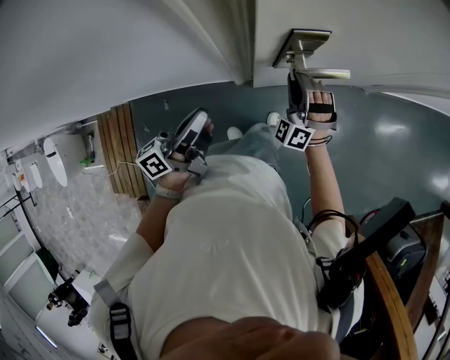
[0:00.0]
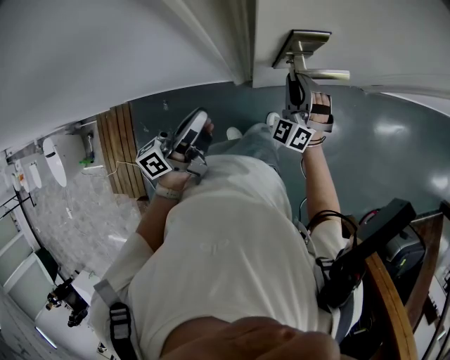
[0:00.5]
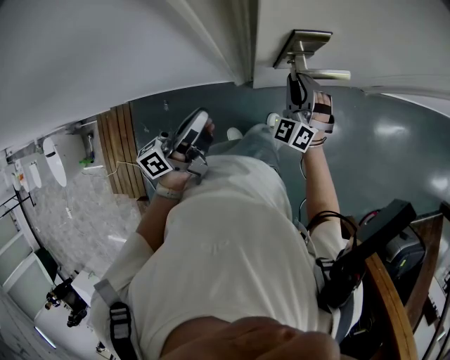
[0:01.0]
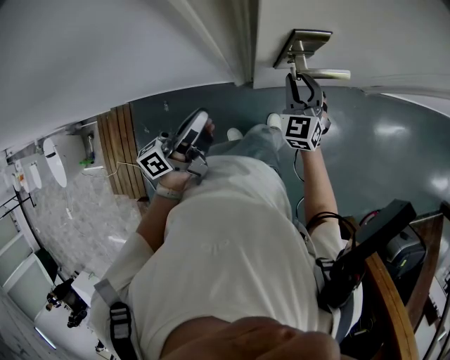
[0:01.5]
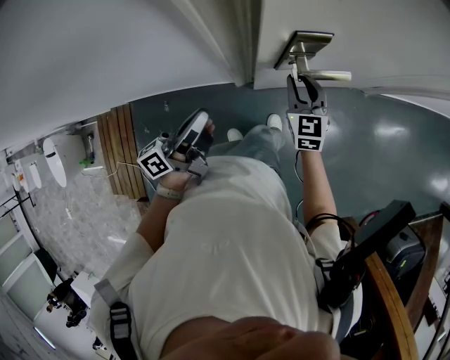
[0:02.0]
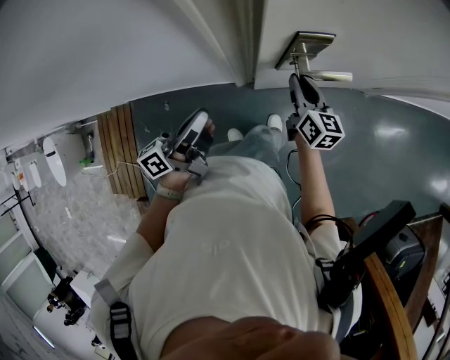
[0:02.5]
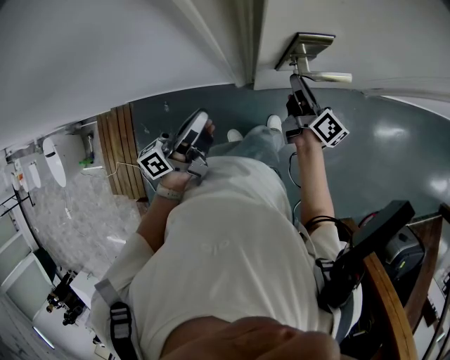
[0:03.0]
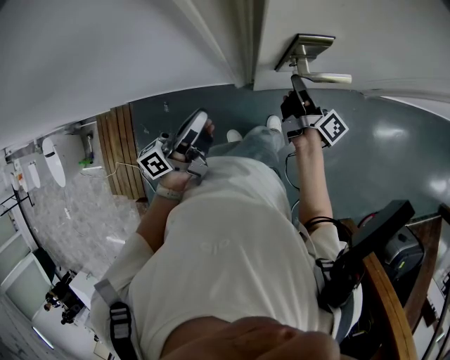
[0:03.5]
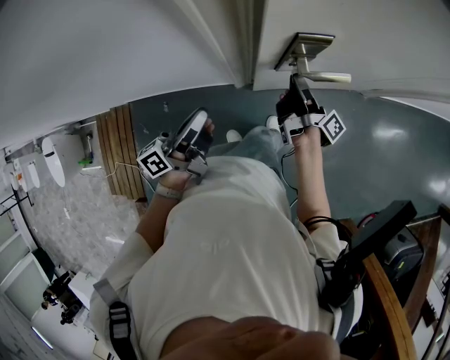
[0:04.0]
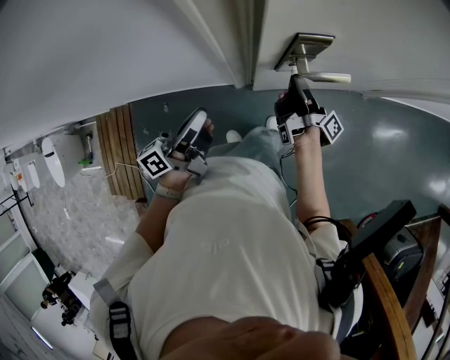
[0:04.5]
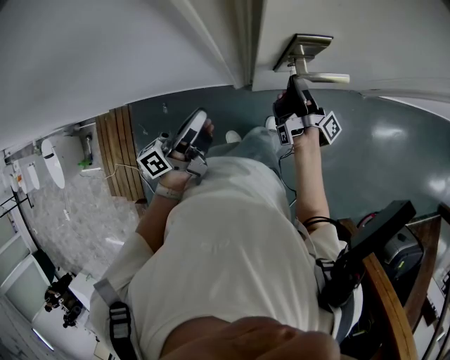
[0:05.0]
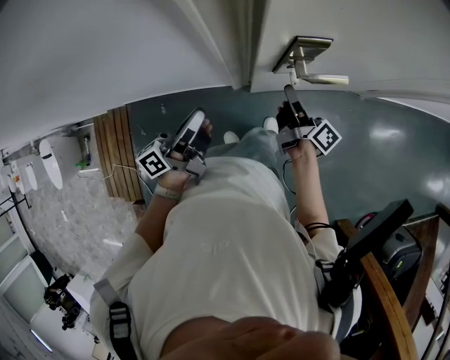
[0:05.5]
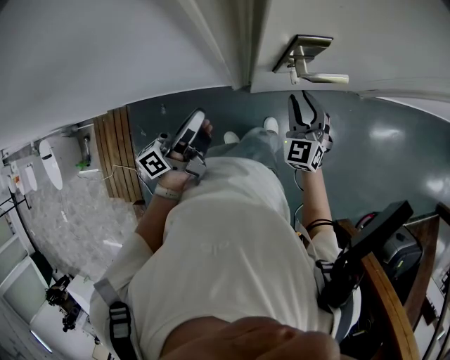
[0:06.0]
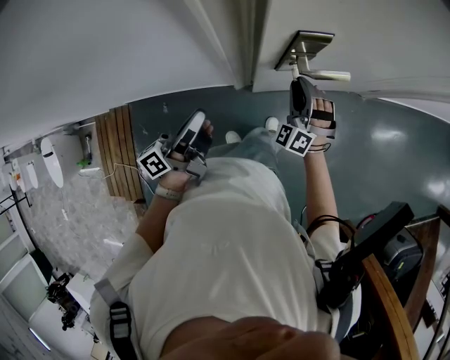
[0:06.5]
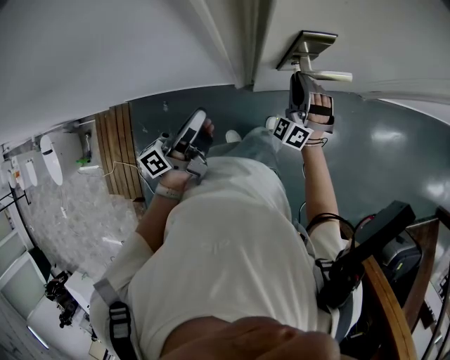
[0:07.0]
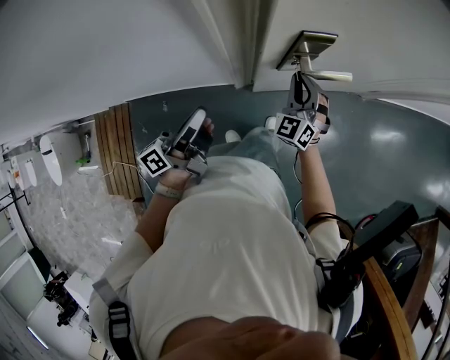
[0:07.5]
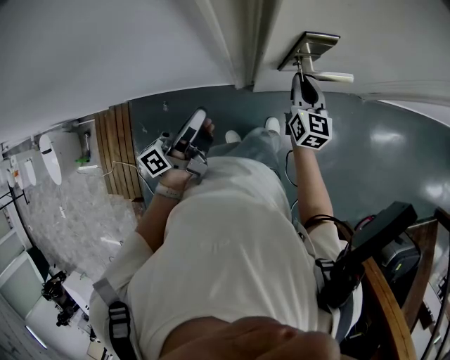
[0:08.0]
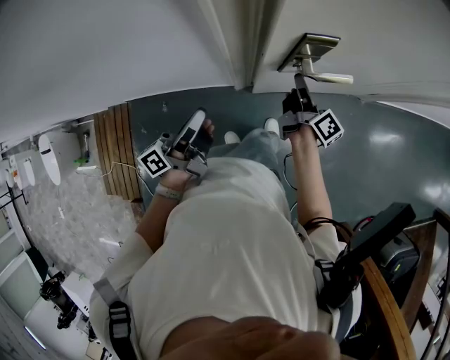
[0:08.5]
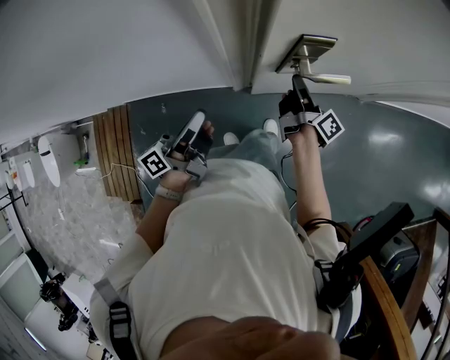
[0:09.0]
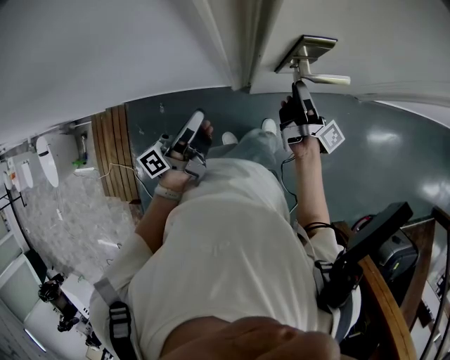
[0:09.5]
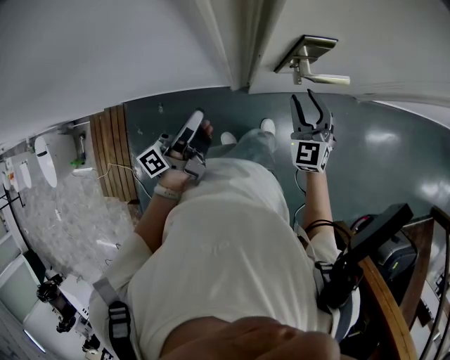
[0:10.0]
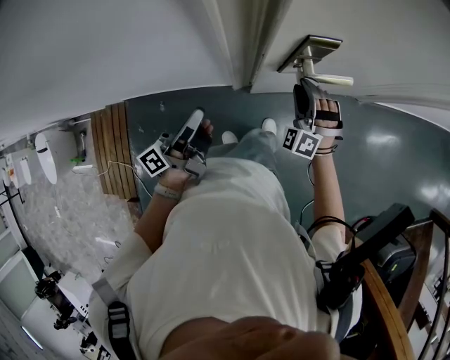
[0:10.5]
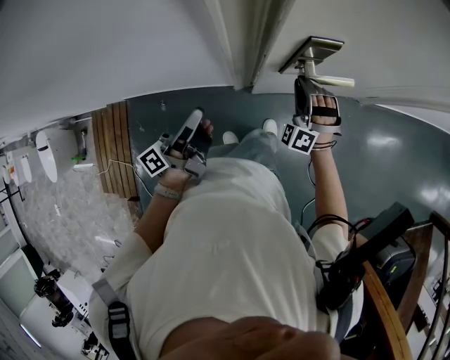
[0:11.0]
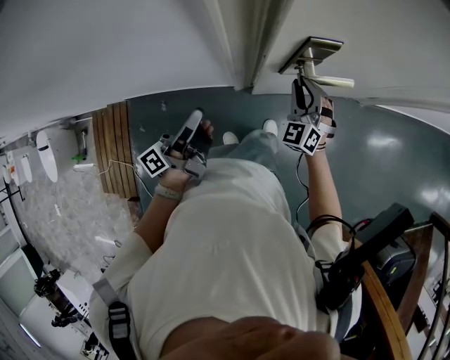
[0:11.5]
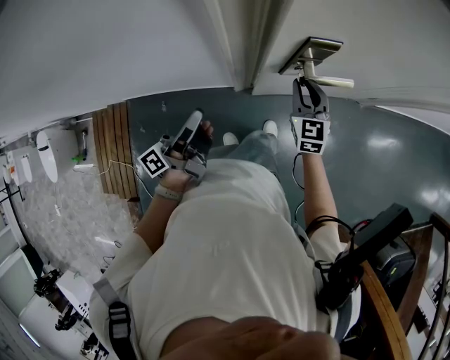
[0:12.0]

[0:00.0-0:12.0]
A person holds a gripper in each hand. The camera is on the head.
0:00.0 to 0:02.0: The right gripper rolls clockwise, seen from behind, by roughly 60 degrees.
0:02.0 to 0:04.0: The right gripper twists roughly 100 degrees clockwise, seen from behind.
0:04.0 to 0:06.0: The right gripper rotates around the line of its fingers by roughly 130 degrees, counterclockwise from behind.
0:06.0 to 0:08.0: The right gripper shifts about 5 cm forward, and twists about 40 degrees clockwise, seen from behind.
0:08.0 to 0:10.0: The right gripper travels backward by about 5 cm, rolls counterclockwise, seen from behind, by approximately 40 degrees, and opens up.
0:10.0 to 0:12.0: The right gripper moves roughly 5 cm.

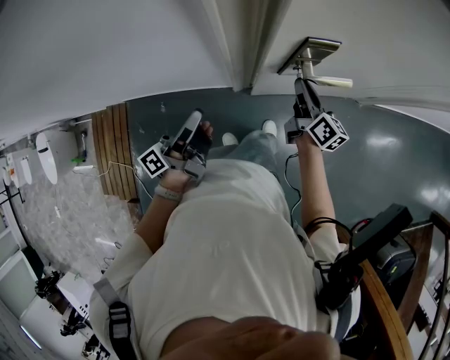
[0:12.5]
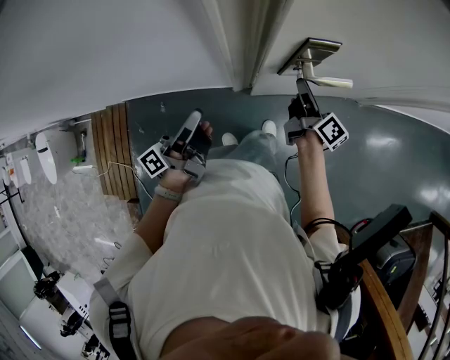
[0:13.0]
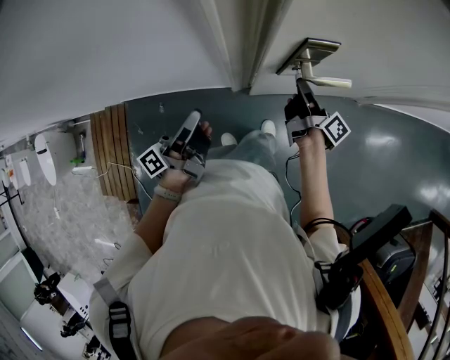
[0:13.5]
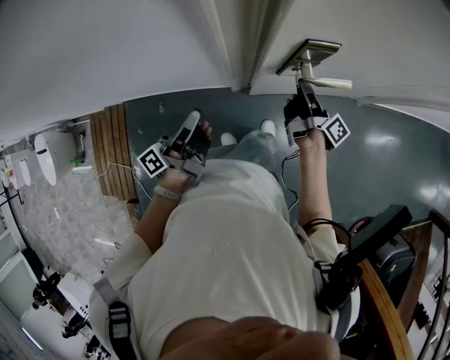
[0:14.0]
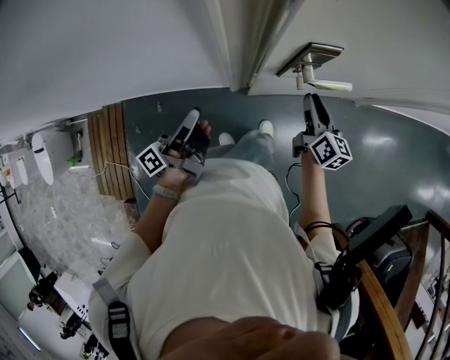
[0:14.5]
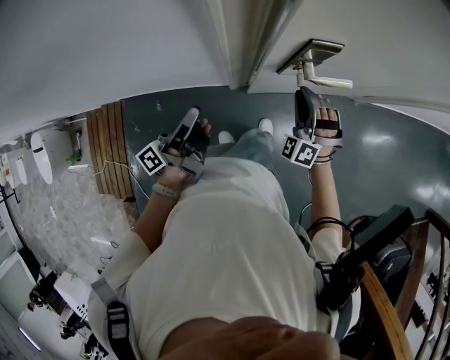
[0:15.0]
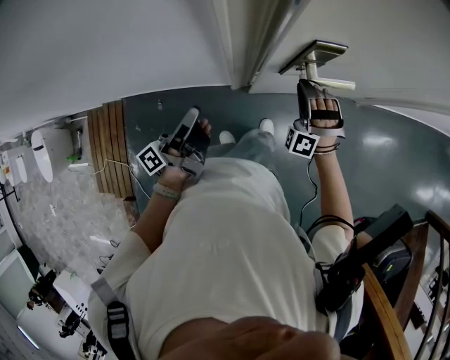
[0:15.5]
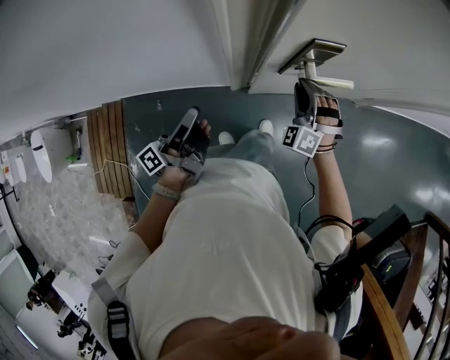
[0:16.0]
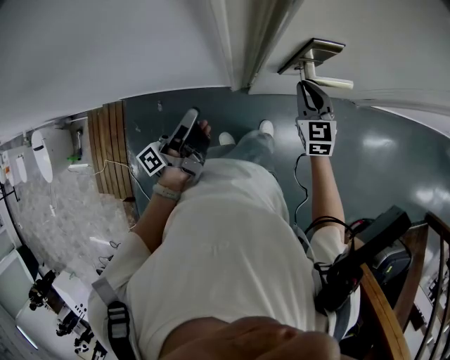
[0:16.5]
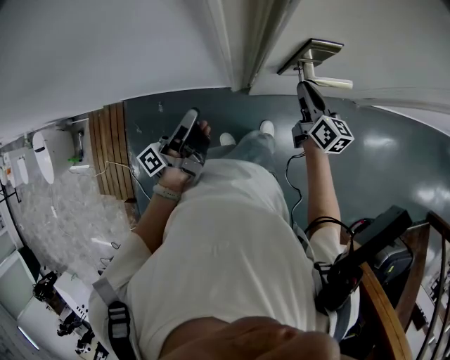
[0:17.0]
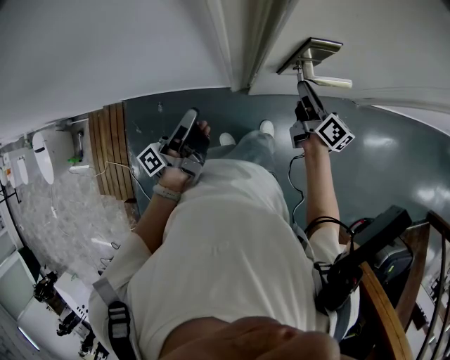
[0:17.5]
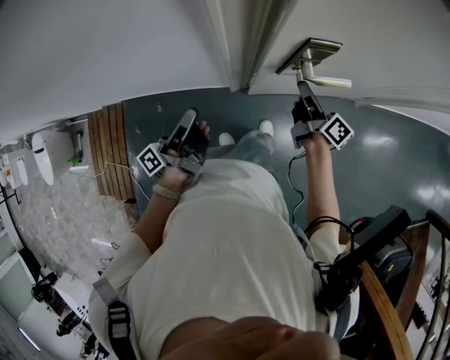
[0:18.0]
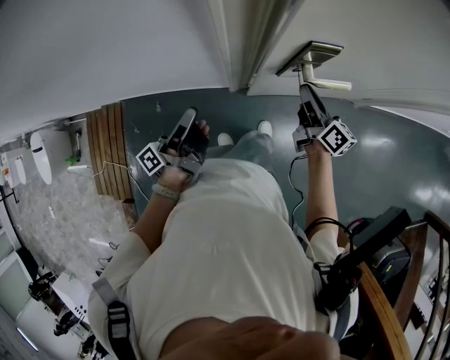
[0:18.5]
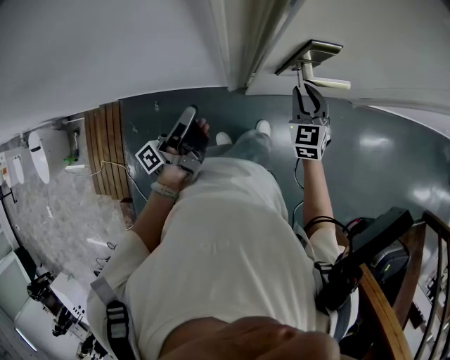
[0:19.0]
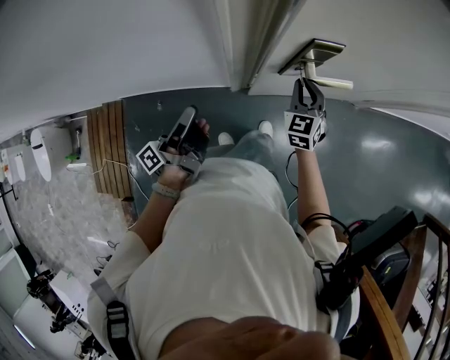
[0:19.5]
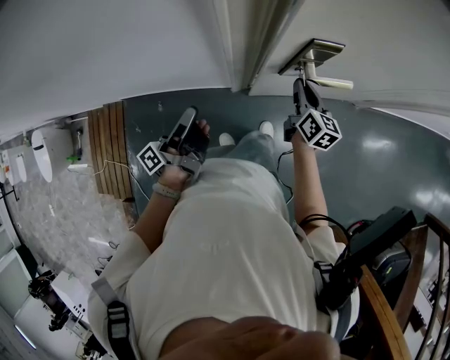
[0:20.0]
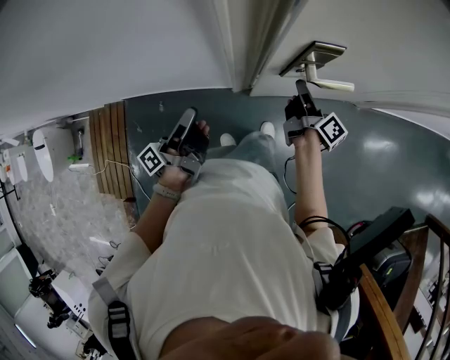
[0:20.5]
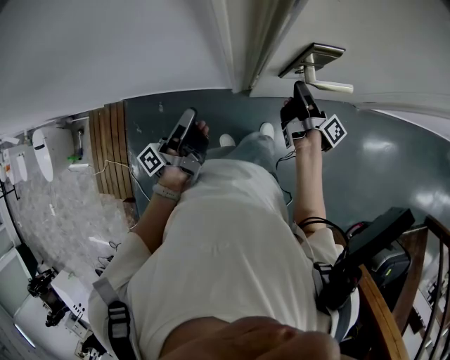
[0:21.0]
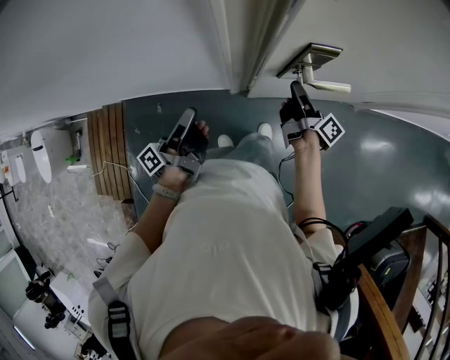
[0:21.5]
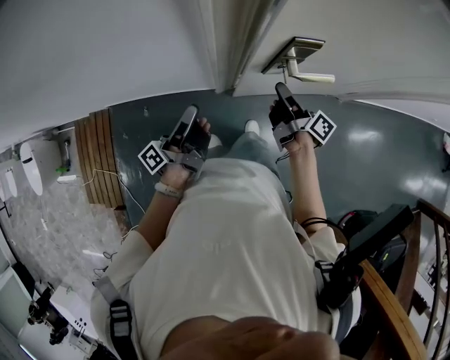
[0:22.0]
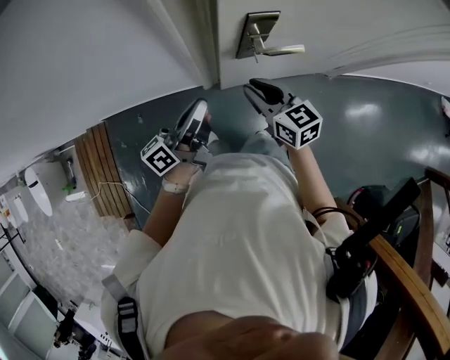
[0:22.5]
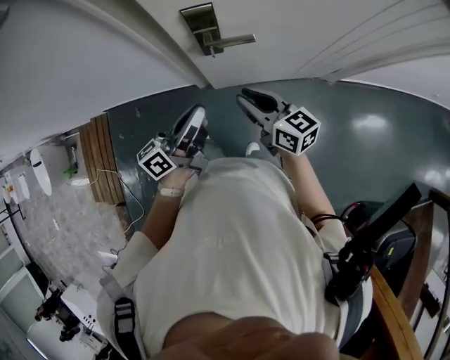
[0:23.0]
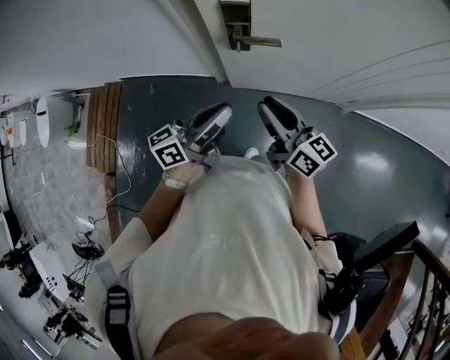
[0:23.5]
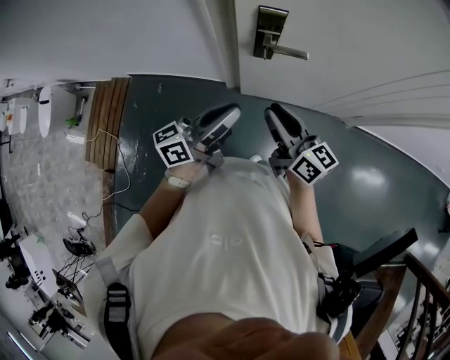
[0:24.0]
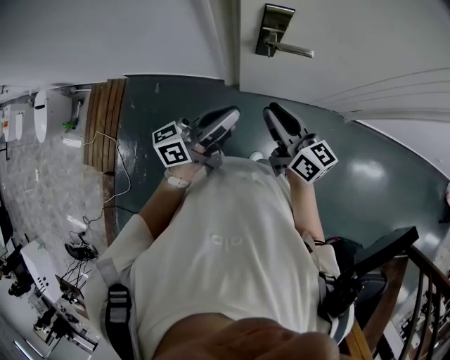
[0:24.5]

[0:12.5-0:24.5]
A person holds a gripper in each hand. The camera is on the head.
0:14.5 to 0:16.5: The right gripper ends up roughly 5 cm from where it was, and rotates around the line of its fingers by roughly 50 degrees, counterclockwise from behind.
0:16.5 to 0:18.5: The right gripper rolls clockwise, seen from behind, by about 60 degrees.
0:18.5 to 0:20.5: The right gripper changes its angle by approximately 30 degrees.
0:20.5 to 0:22.5: The right gripper heads backward, upward and to the left, covering about 15 cm, and rolls counterclockwise, seen from behind, by approximately 60 degrees. Meanwhile the left gripper travels to the right and upward by approximately 10 cm, and changes its angle by some 30 degrees.
0:22.5 to 0:24.5: Both grippers move backward, to the right and upward, roughly 15 cm. The right gripper rotates approximately 30 degrees.

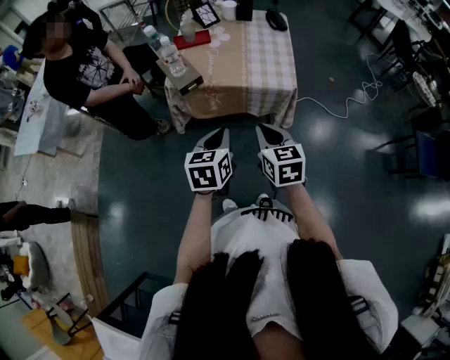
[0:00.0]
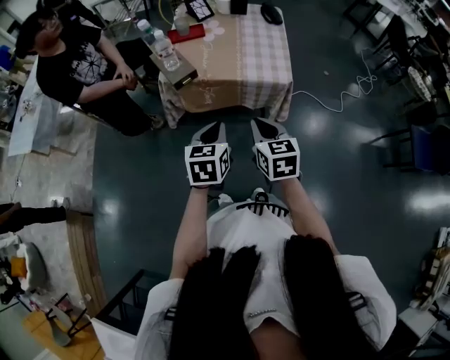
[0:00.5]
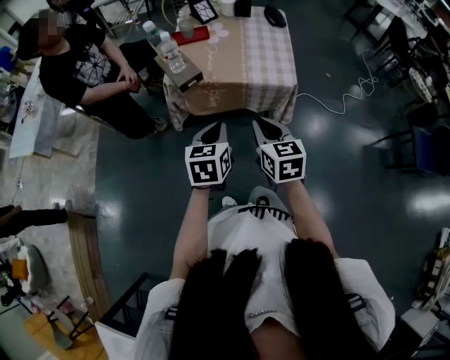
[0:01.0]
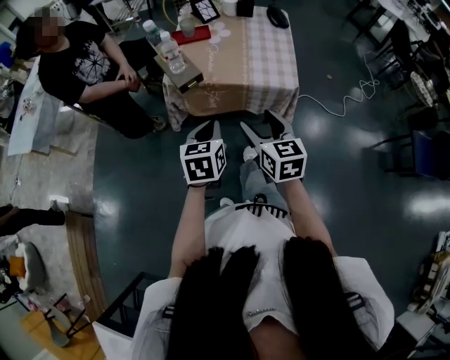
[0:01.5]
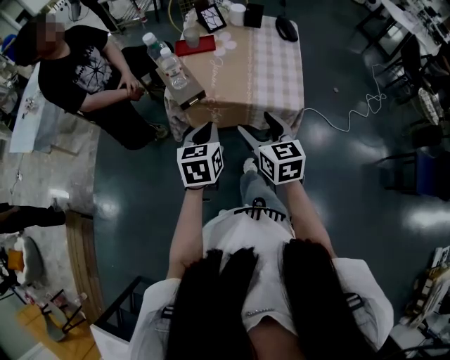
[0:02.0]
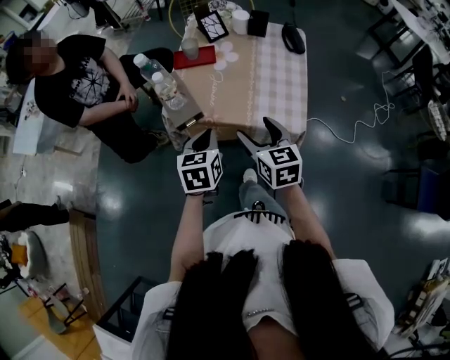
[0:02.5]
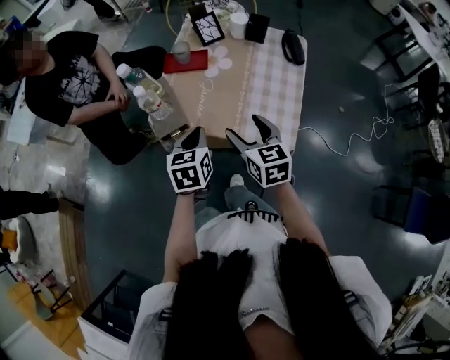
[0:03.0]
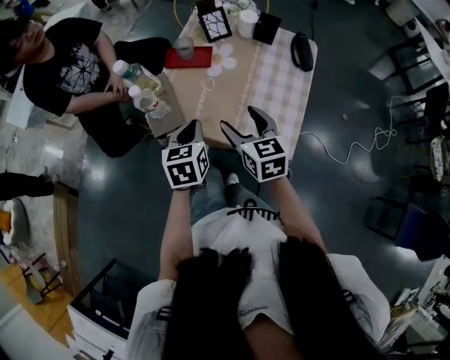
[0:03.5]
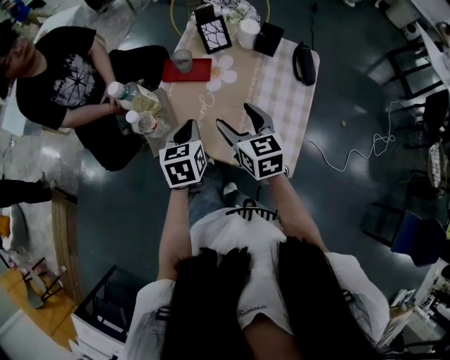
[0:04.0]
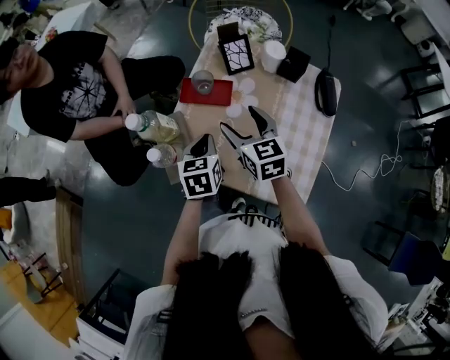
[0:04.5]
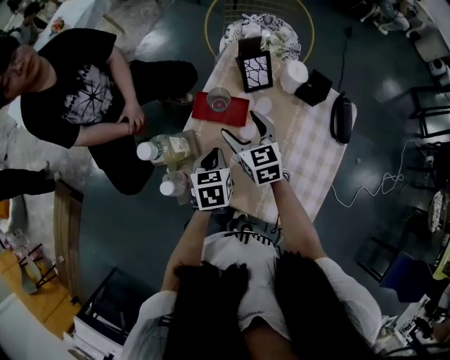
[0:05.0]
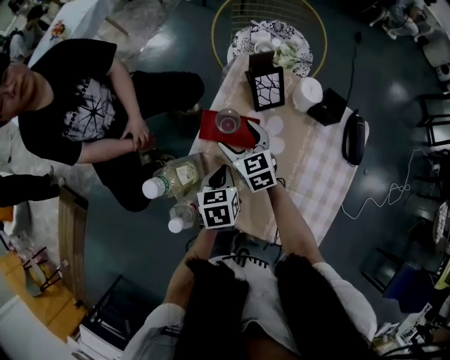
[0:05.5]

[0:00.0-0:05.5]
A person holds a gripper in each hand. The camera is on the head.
0:00.0 to 0:02.0: The grippers both shift forward by about 10 cm. The right gripper opens its fingers.
0:02.0 to 0:03.5: The two grippers go roughly 15 cm forward.
0:03.5 to 0:05.5: The left gripper moves forward and downward, roughly 25 cm; the right gripper goes some 35 cm forward.
